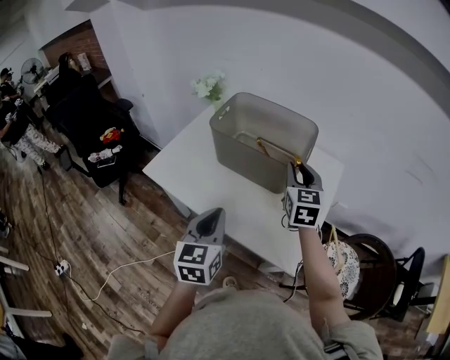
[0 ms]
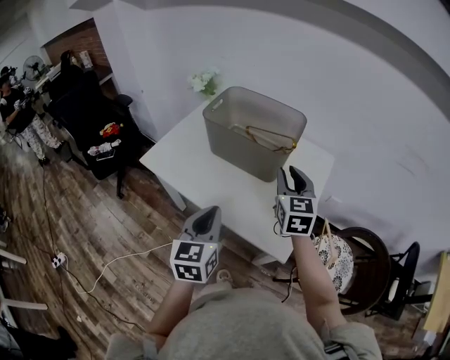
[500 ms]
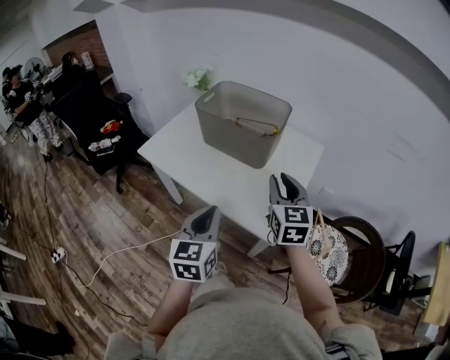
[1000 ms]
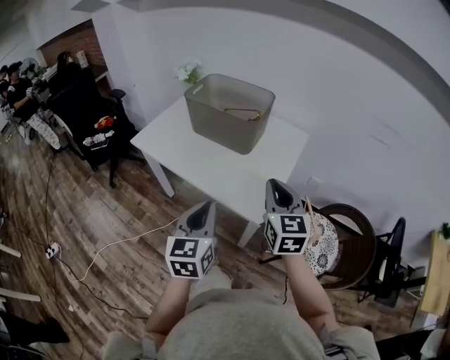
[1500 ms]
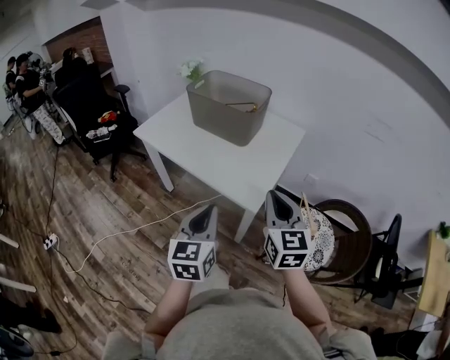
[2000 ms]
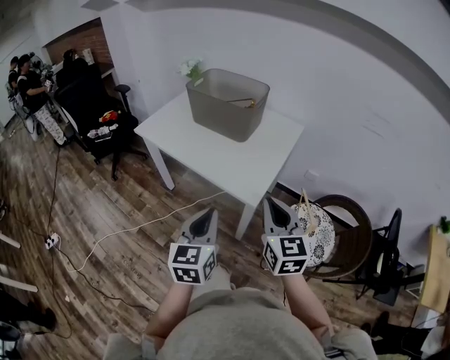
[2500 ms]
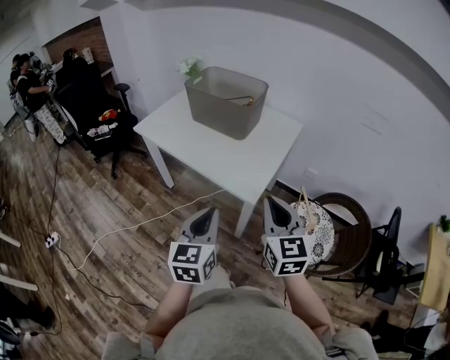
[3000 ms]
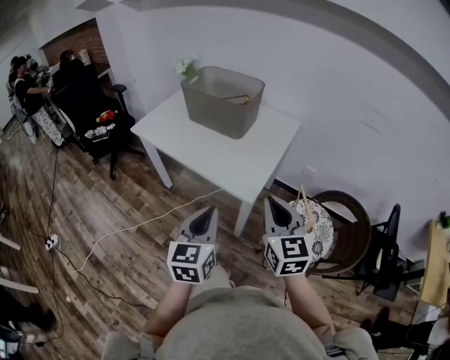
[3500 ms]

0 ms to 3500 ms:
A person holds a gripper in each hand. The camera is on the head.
0 ms to 2000 ms: The left gripper travels backward and to the right by about 30 cm; the right gripper moves backward, some 35 cm, and closes its fingers.
2000 ms to 3500 ms: The right gripper travels backward by roughly 5 cm.

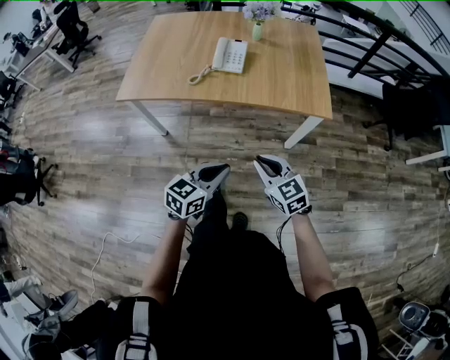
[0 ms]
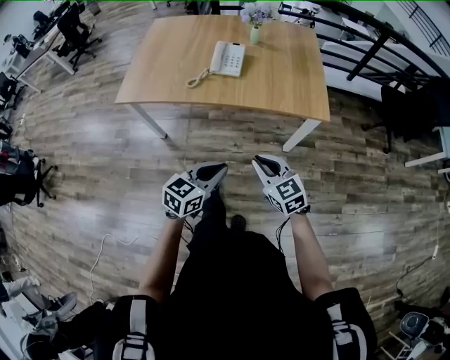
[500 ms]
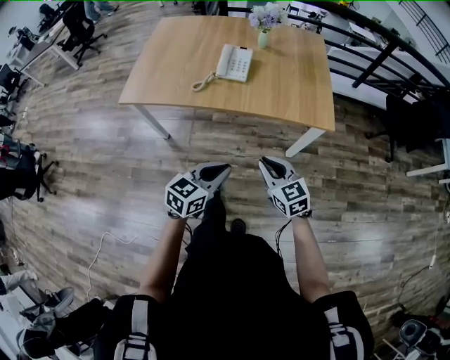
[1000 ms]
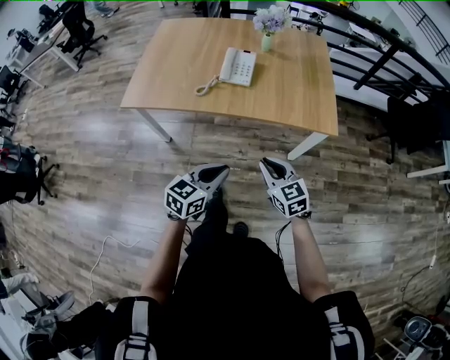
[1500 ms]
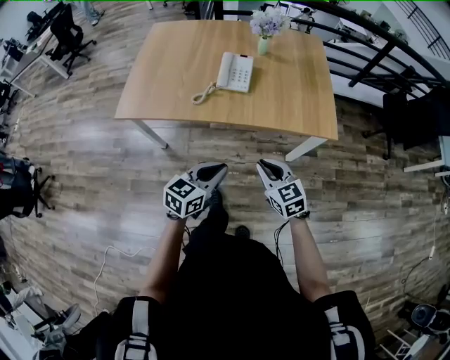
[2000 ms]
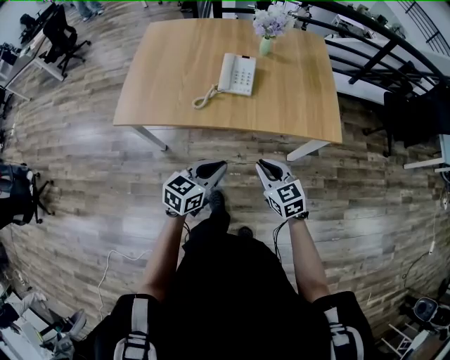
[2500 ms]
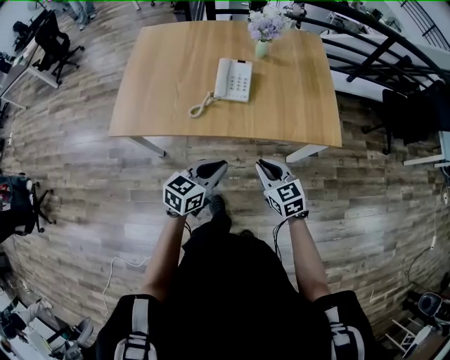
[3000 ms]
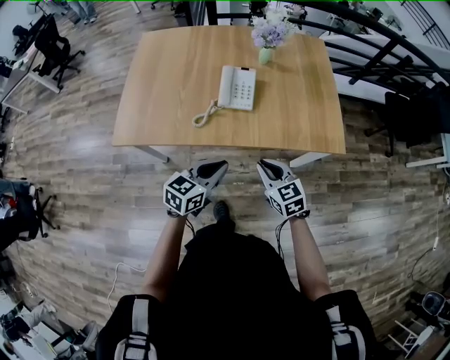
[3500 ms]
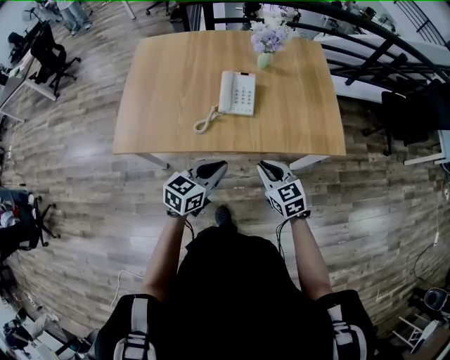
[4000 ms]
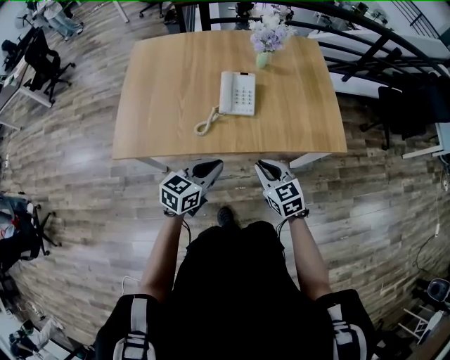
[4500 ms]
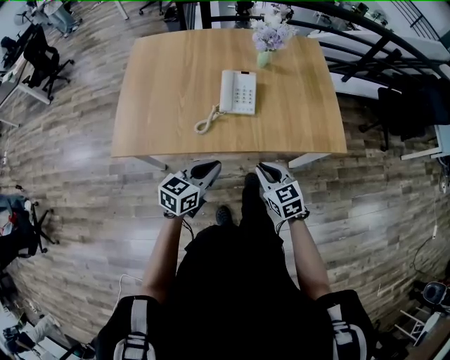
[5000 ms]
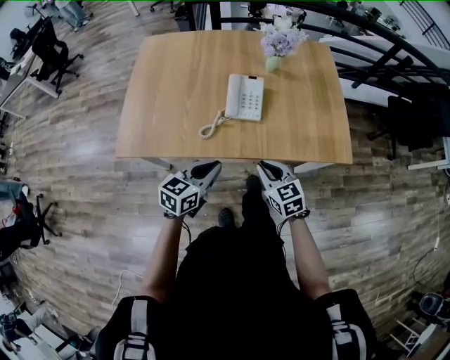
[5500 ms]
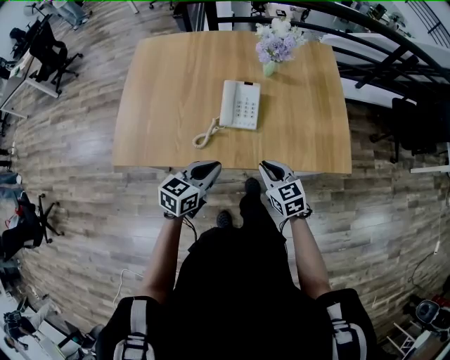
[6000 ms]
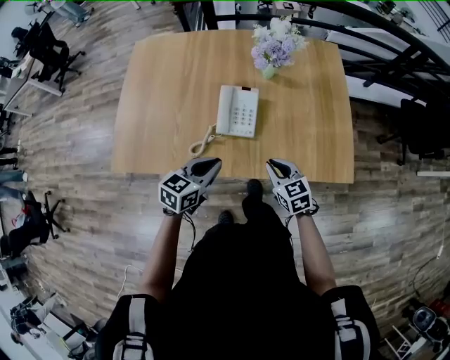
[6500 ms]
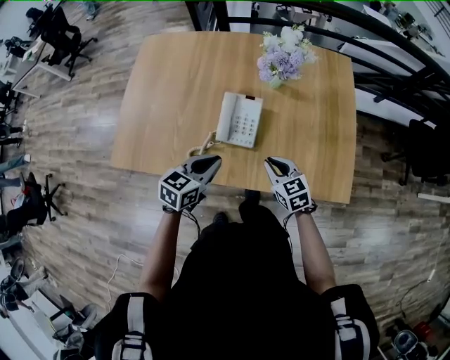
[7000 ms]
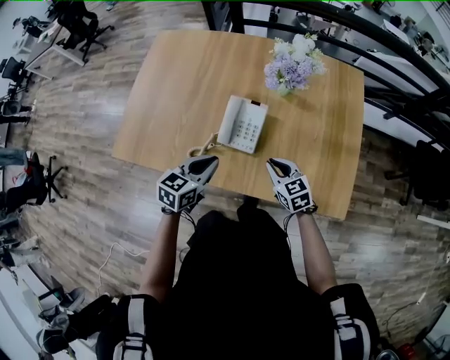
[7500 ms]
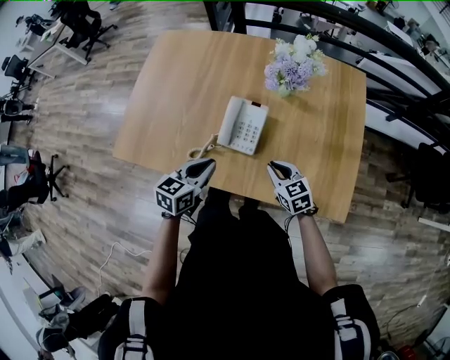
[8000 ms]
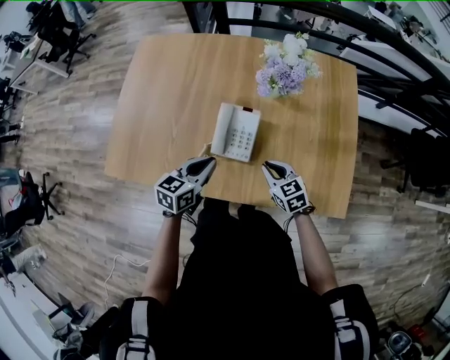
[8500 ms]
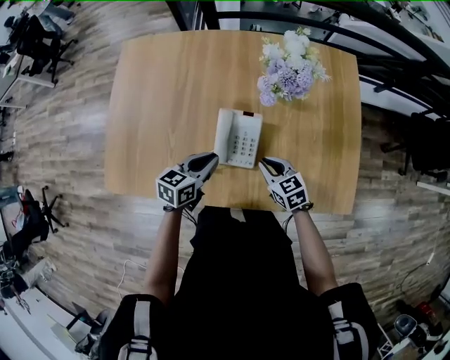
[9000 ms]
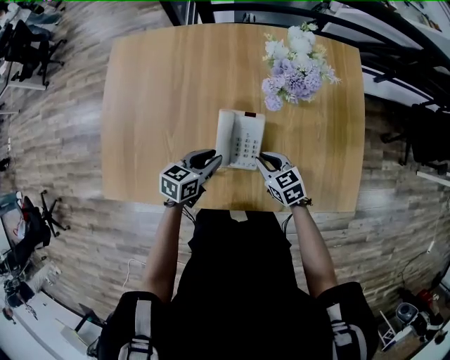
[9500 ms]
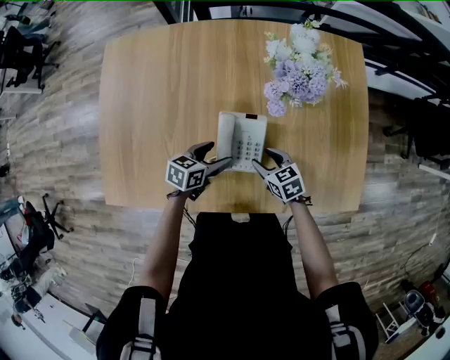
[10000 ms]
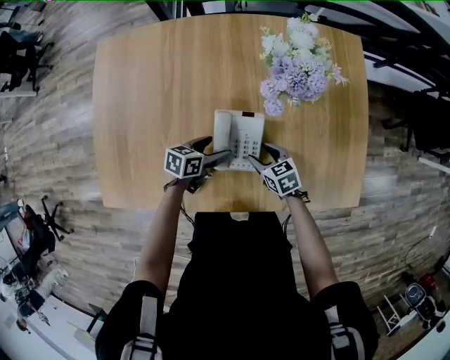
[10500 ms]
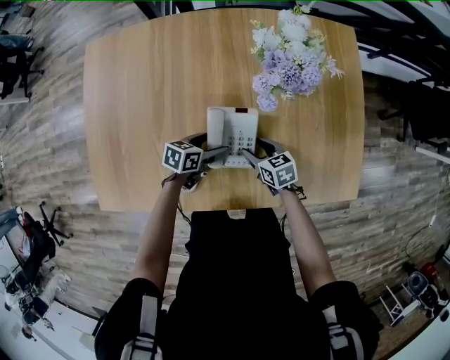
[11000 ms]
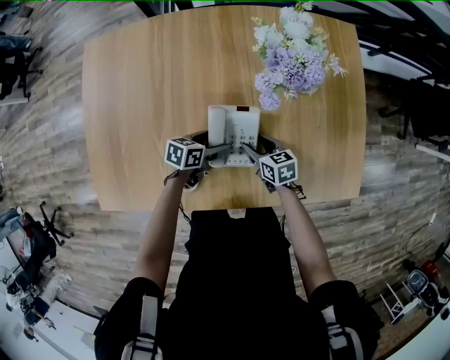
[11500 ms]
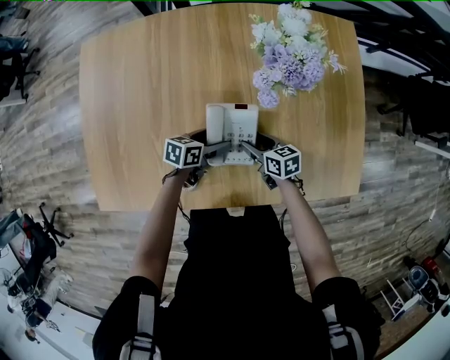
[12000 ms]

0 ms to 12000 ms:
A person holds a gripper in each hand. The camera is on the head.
0 ms to 2000 ms: The right gripper goes some 10 cm forward, while the left gripper moves forward and to the left, about 10 cm.
2000 ms to 4000 ms: Both grippers move forward and to the left, roughly 15 cm.
4000 ms to 6000 ms: The two grippers go some 10 cm forward.
6000 ms to 8000 ms: The right gripper shifts about 15 cm forward and to the right. The left gripper travels forward by some 10 cm.
8000 ms to 10000 ms: The left gripper shifts some 20 cm forward and downward, changes its angle by approximately 30 degrees, and opens its fingers; the right gripper shifts some 15 cm forward, downward and to the left, and opens up.
10000 ms to 12000 ms: The right gripper turns by approximately 20 degrees; the left gripper is displaced downward by about 5 cm.

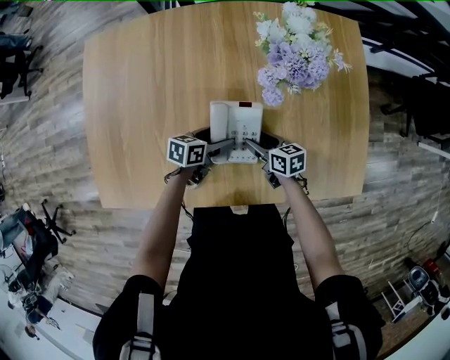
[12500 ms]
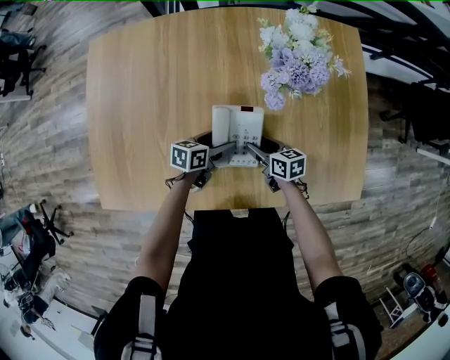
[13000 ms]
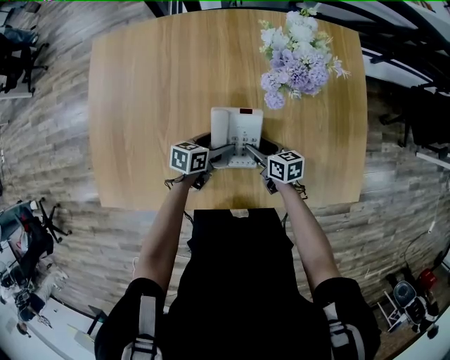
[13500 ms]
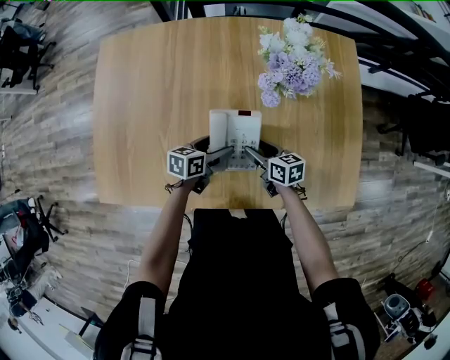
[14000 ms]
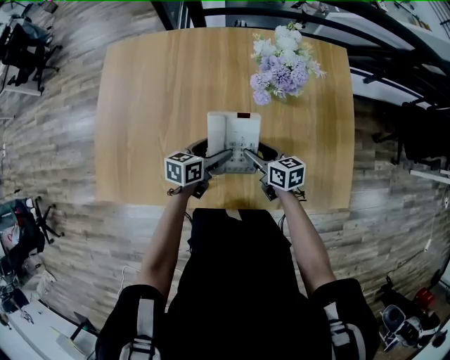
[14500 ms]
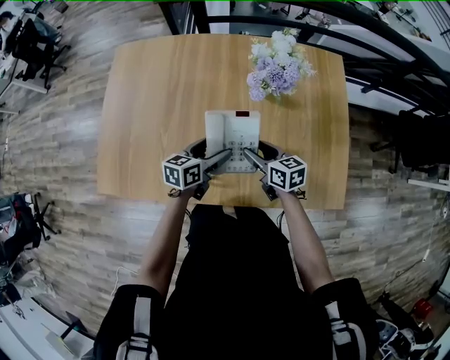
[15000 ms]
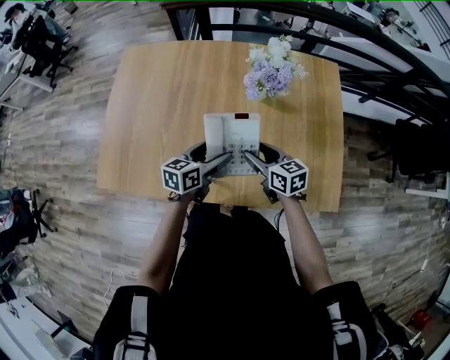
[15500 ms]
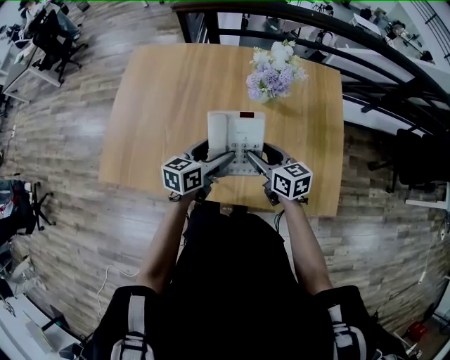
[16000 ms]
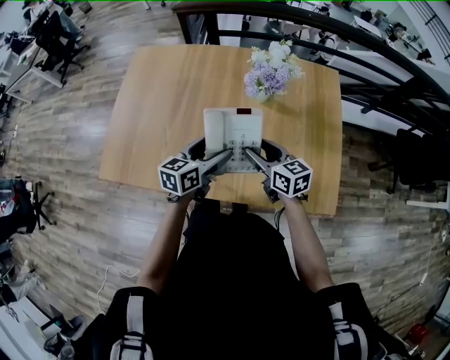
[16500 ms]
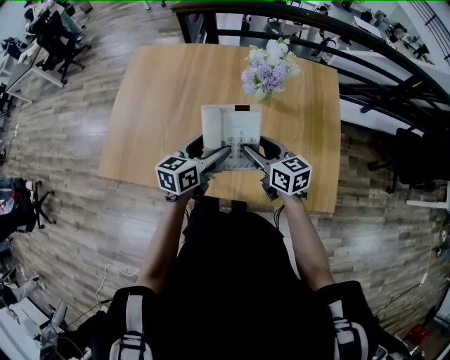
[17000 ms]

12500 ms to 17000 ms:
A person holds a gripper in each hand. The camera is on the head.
12500 ms to 14500 ms: The two grippers go about 10 cm upward.
14500 ms to 17000 ms: The left gripper travels upward and backward by roughly 20 cm, and changes its angle by approximately 20 degrees, while the right gripper shifts some 15 cm upward.

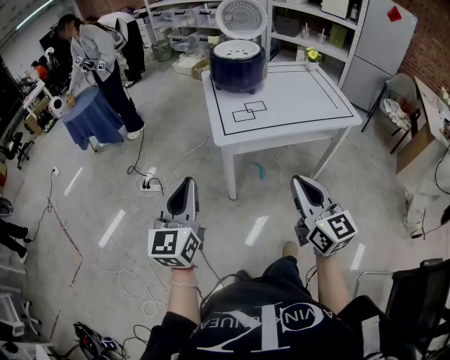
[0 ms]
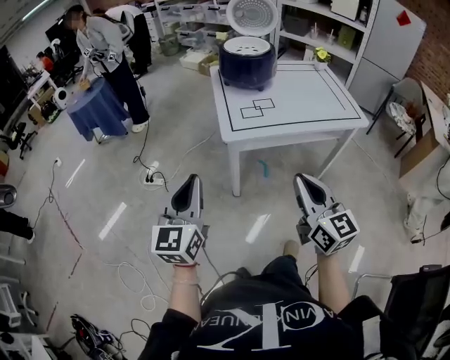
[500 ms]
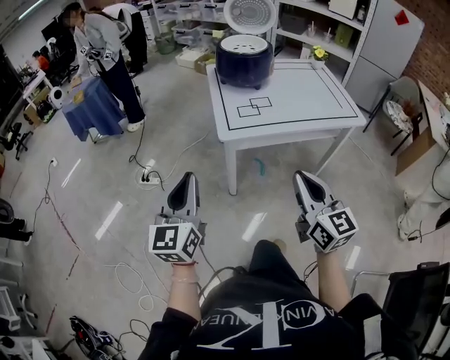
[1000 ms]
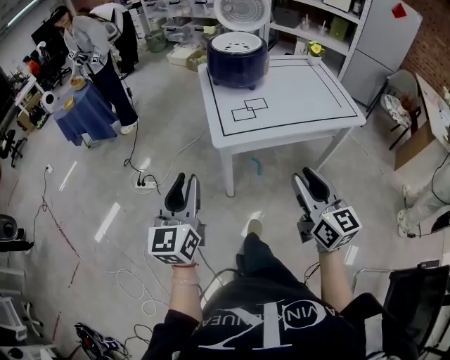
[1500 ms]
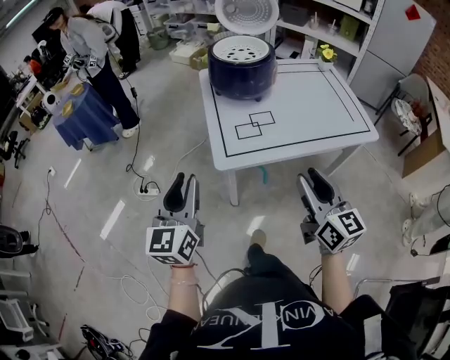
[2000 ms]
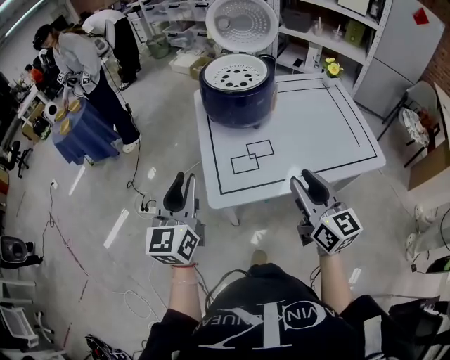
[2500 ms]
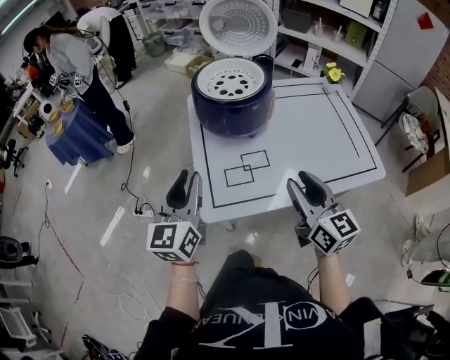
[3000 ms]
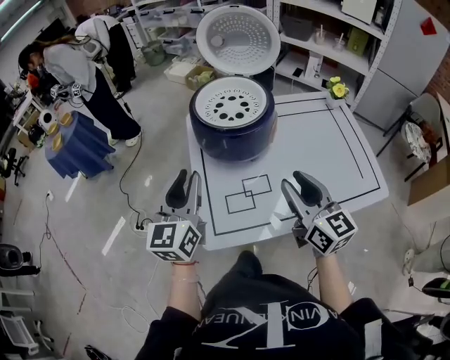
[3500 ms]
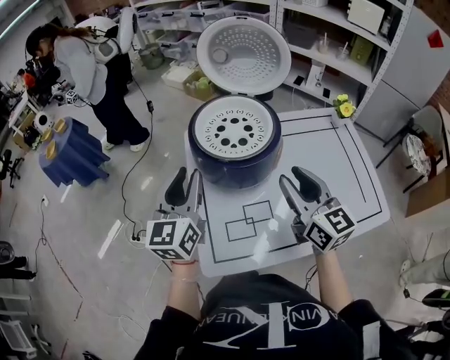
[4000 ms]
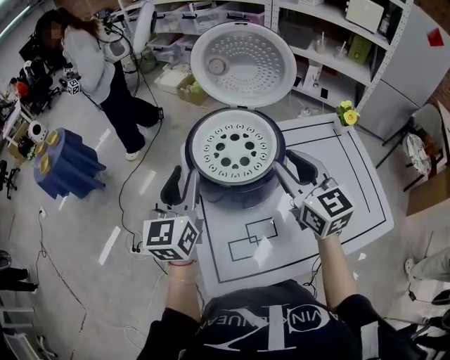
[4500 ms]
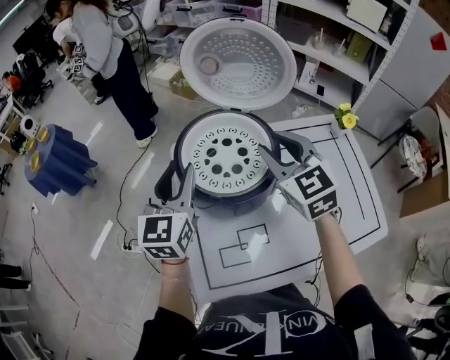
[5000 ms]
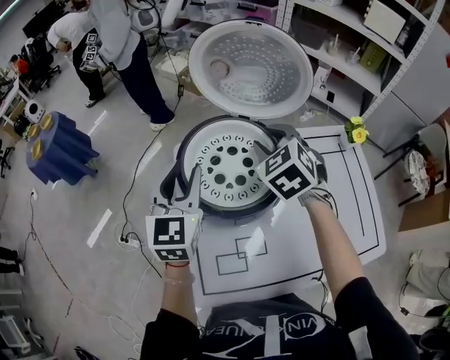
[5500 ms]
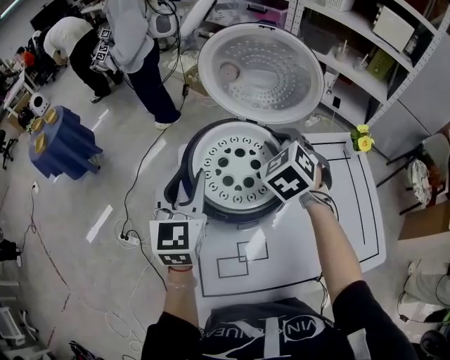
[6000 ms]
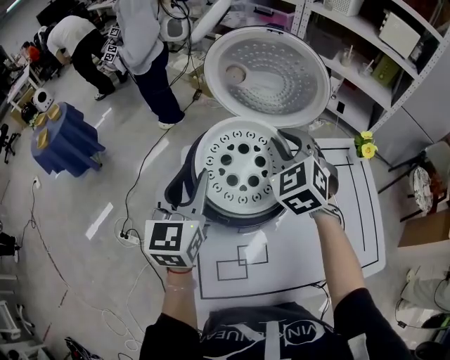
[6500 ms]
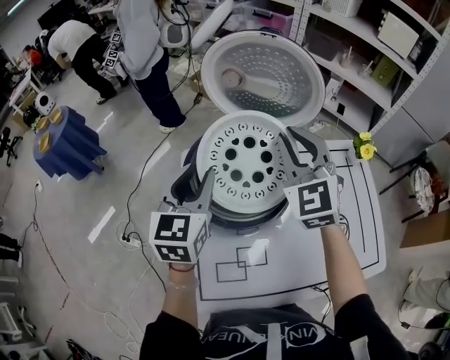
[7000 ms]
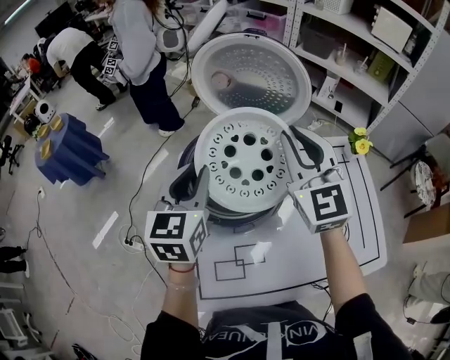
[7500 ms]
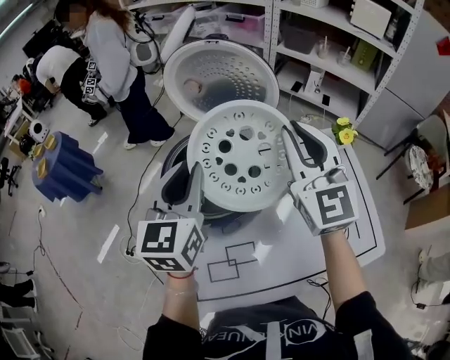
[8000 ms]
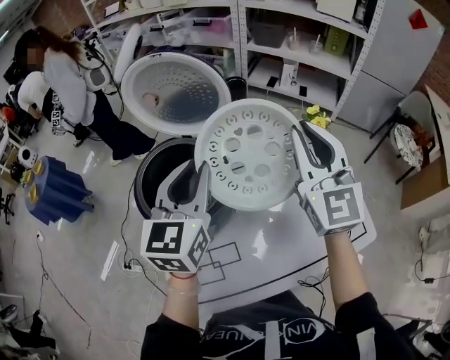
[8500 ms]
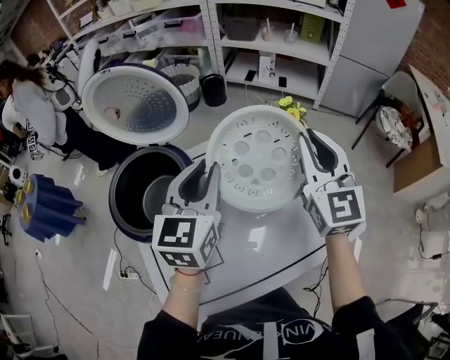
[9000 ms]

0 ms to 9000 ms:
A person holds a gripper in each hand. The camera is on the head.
0 ms to 2000 ms: Both grippers travel together forward, some 15 cm. The right gripper opens.
2000 ms to 4500 ms: The pair of grippers is taken forward, about 50 cm.
4500 ms to 7000 ms: The right gripper heads forward, covering some 15 cm, and turns by about 30 degrees. Meanwhile the left gripper moves forward, roughly 5 cm.
7000 ms to 9000 ms: The grippers both shift to the right by approximately 30 cm. The right gripper rotates some 30 degrees.
